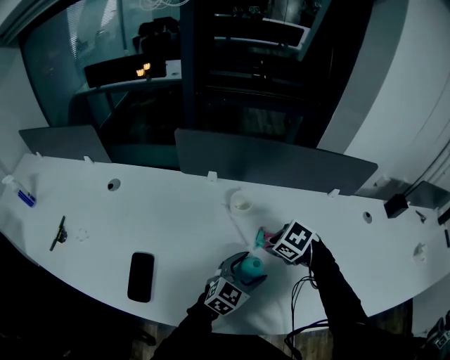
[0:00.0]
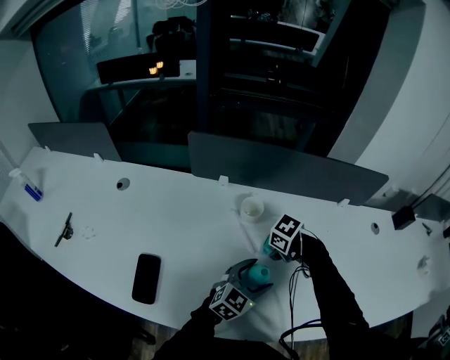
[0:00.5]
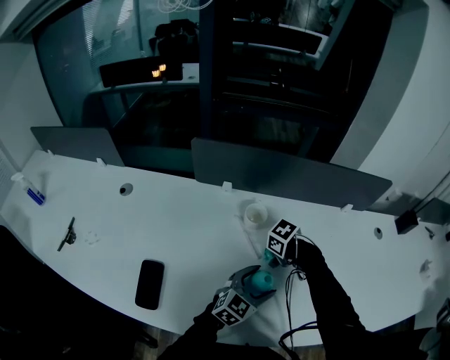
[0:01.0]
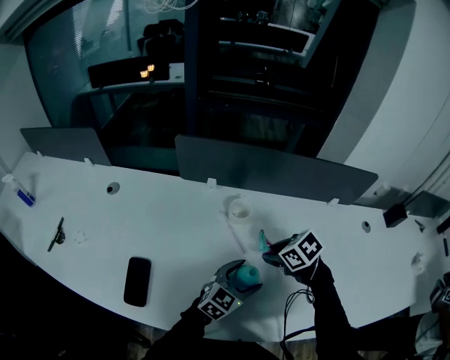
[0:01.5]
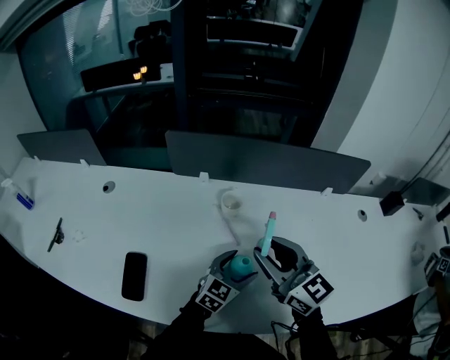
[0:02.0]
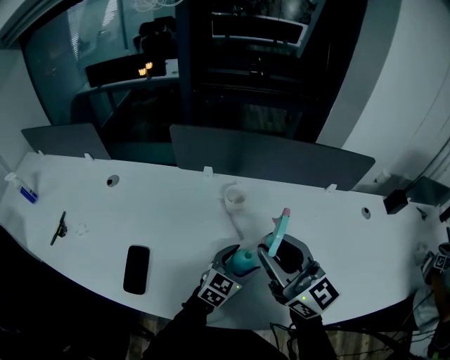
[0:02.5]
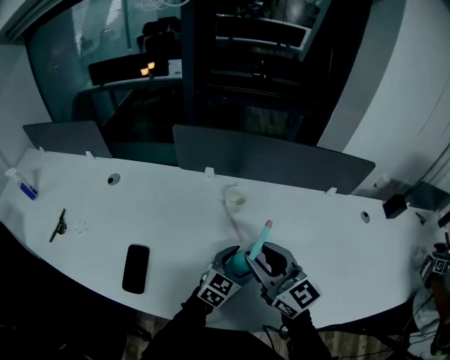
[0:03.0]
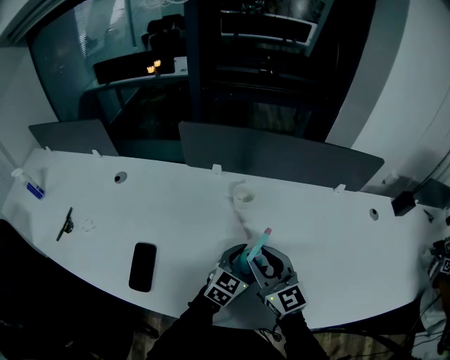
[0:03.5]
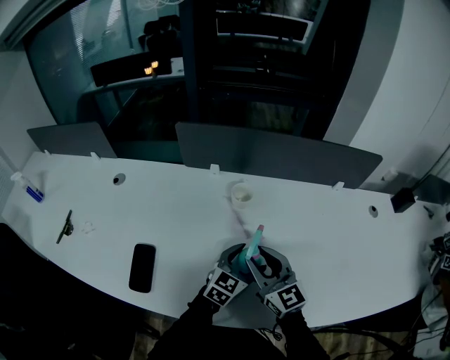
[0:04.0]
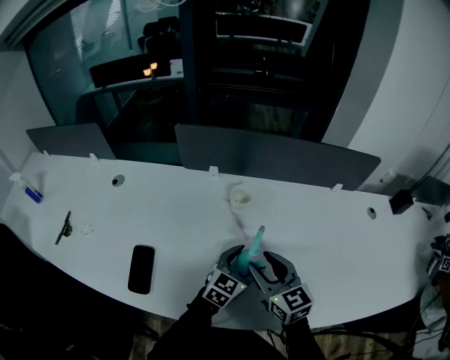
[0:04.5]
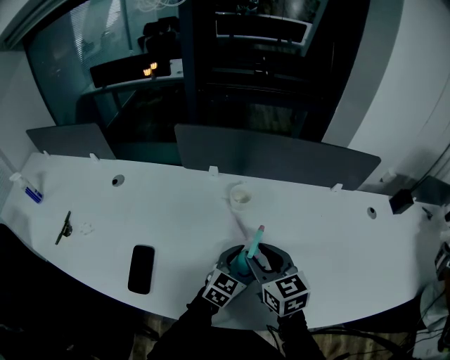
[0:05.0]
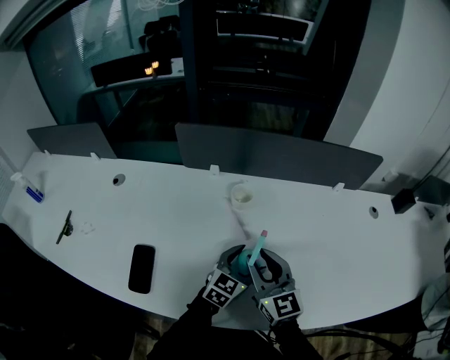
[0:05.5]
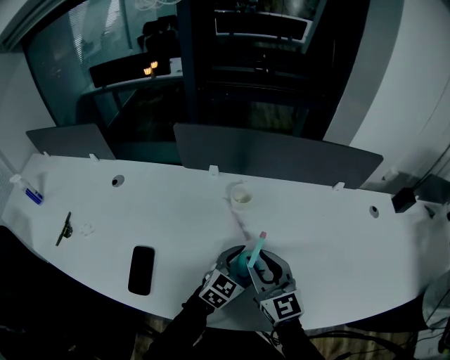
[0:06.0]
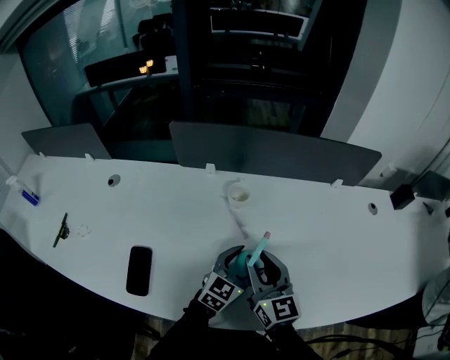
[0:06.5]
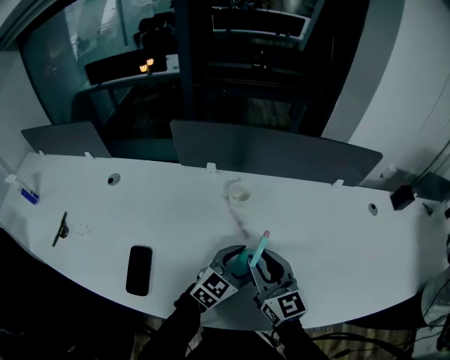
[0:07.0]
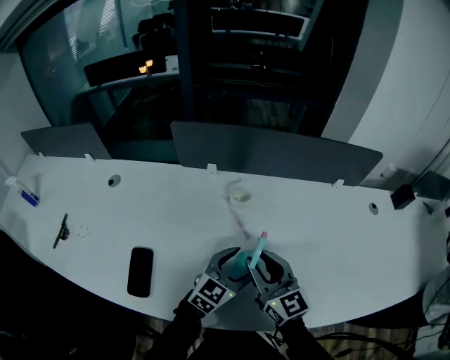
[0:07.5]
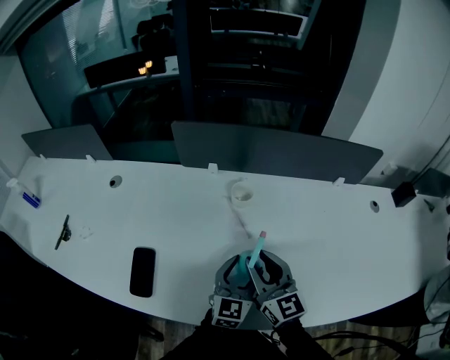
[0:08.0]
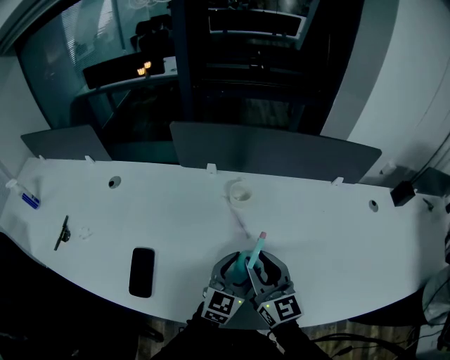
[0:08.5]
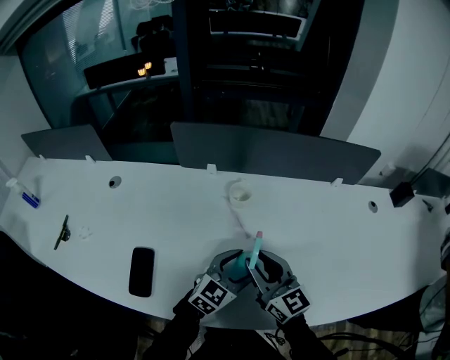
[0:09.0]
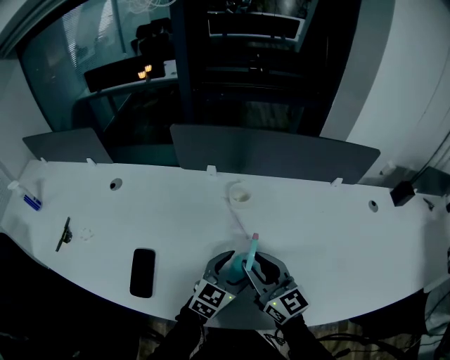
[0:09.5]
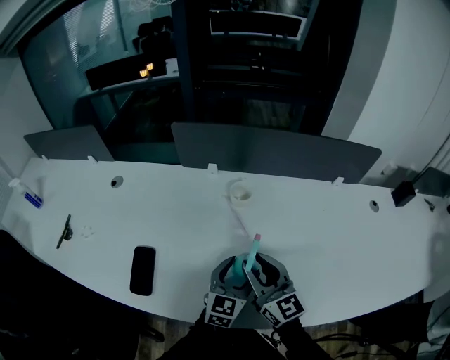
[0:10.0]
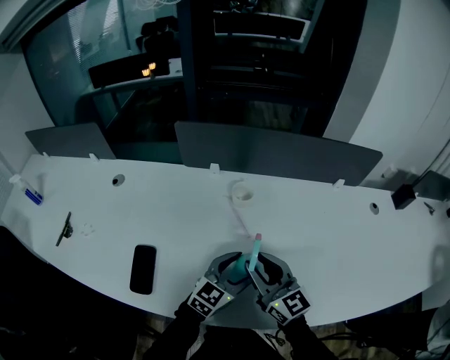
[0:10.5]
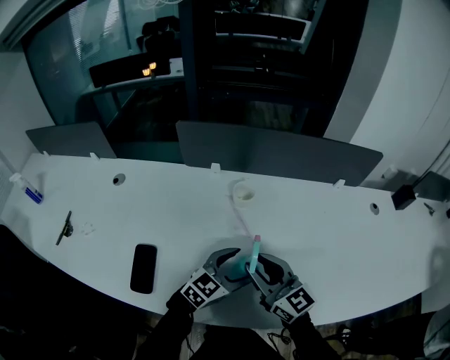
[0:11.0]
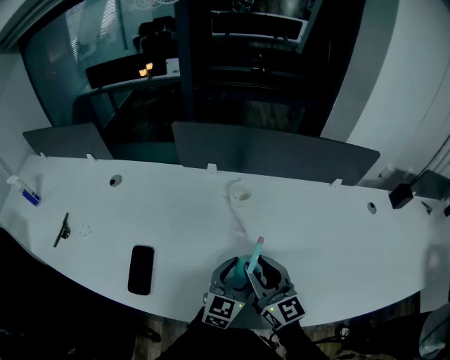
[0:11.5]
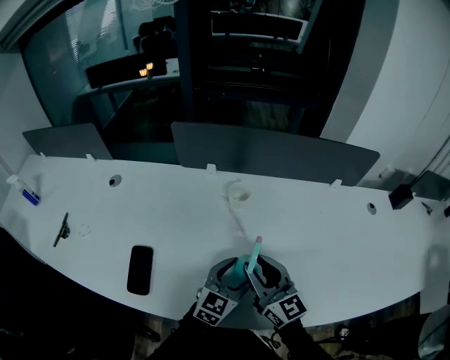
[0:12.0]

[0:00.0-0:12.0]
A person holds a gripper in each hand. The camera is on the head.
0:00.0 to 0:02.0: The right gripper travels upward by roughly 20 cm, and tips its fingers upward by some 70 degrees.
0:02.0 to 0:04.0: The right gripper travels downward by some 10 cm.
0:06.0 to 0:08.0: The left gripper turns by roughly 20 degrees.

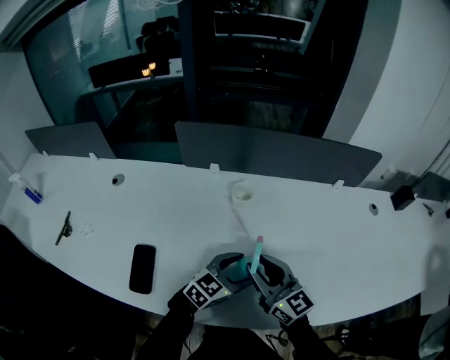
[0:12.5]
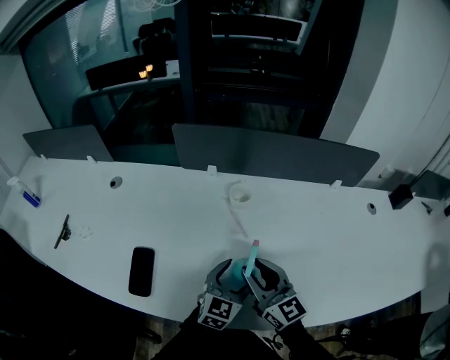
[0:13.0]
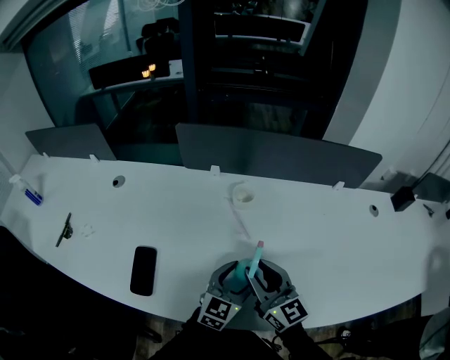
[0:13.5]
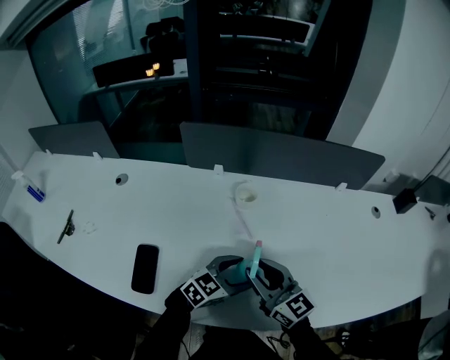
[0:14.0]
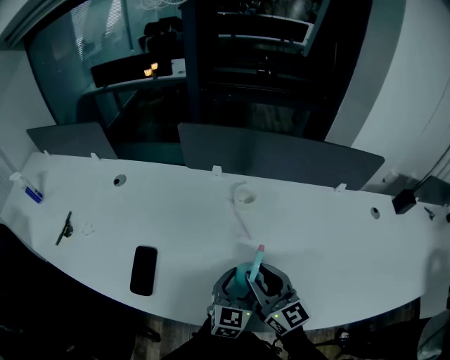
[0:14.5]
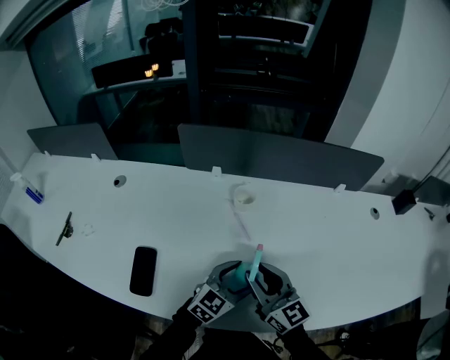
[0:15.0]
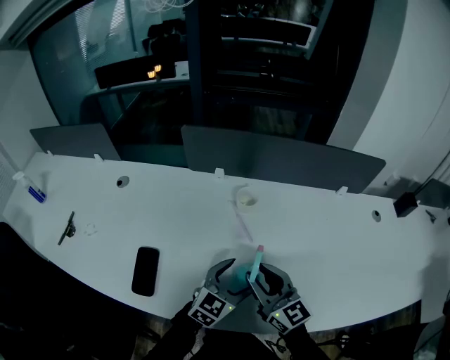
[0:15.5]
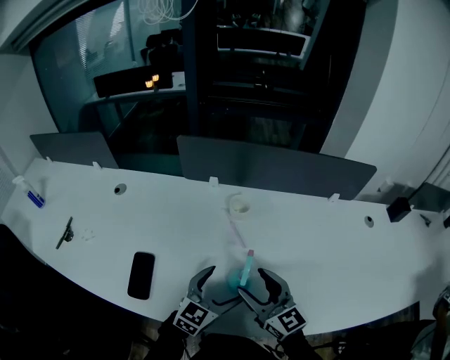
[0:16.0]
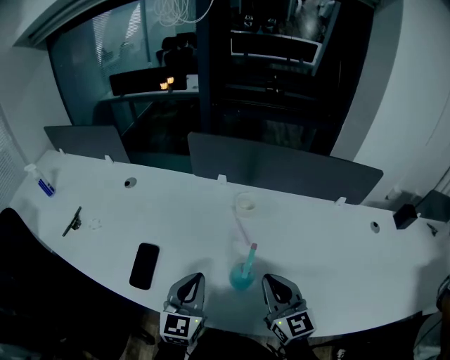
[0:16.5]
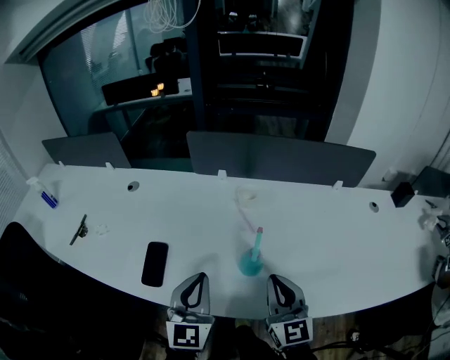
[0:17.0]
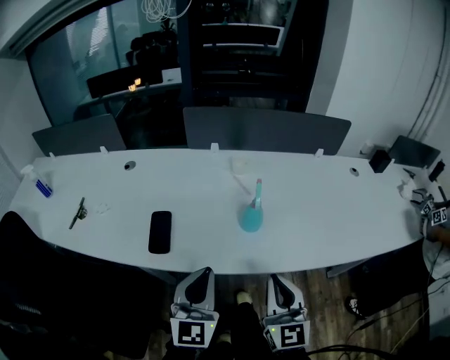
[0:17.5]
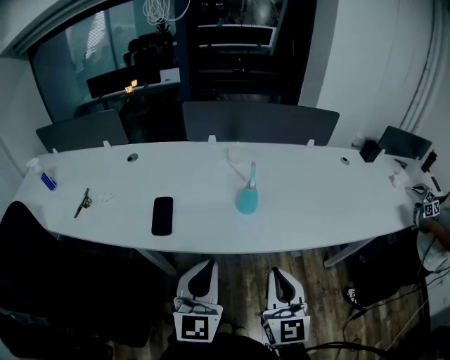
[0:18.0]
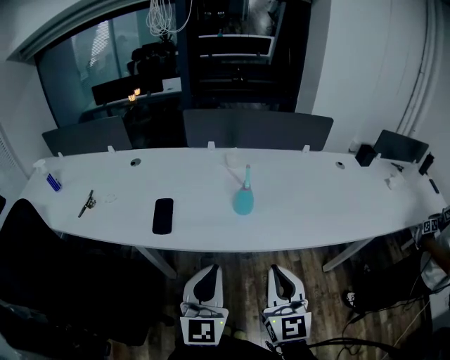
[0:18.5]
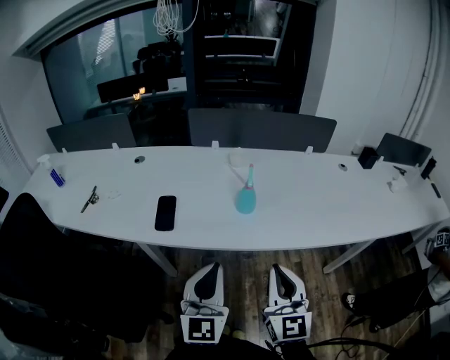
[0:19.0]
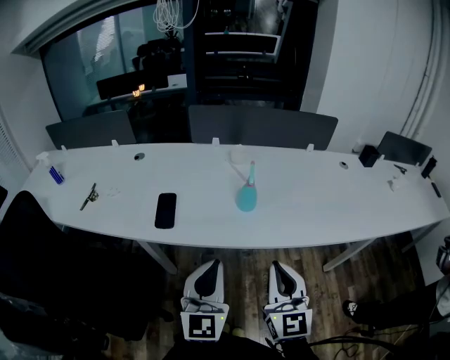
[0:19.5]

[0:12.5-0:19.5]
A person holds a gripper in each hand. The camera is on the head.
0:12.5 to 0:14.5: The left gripper changes its angle by about 30 degrees.
0:14.5 to 0:16.0: The right gripper opens.
0:16.0 to 0:17.5: The left gripper goes approximately 25 cm backward, to the left and upward, turns by some 30 degrees, and closes. Meanwhile the right gripper is displaced backward by about 20 cm, swivels about 30 degrees, and closes its fingers.
0:17.5 to 0:19.5: The grippers both shift backward by some 10 cm.

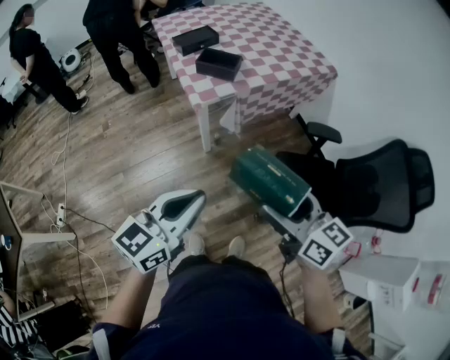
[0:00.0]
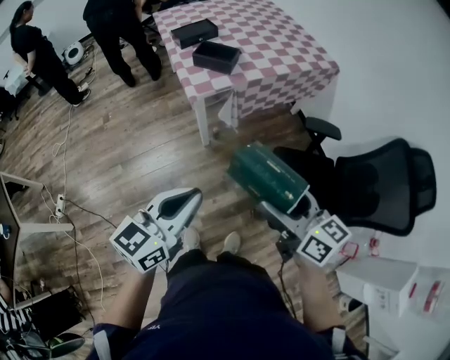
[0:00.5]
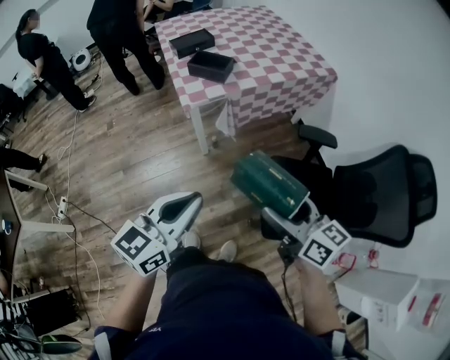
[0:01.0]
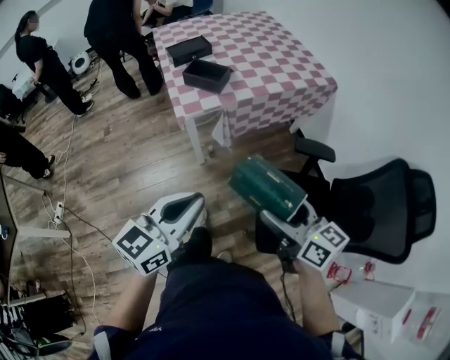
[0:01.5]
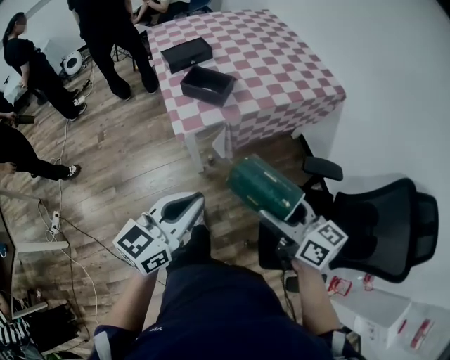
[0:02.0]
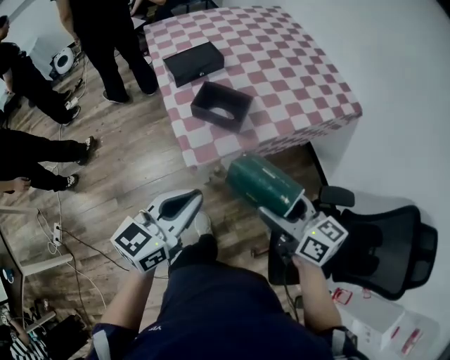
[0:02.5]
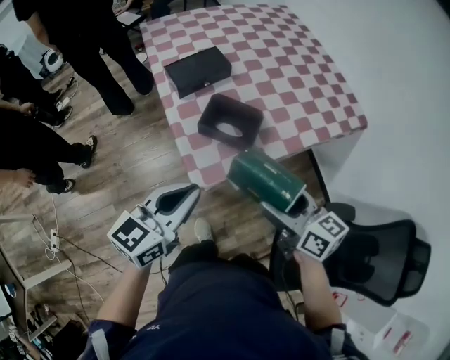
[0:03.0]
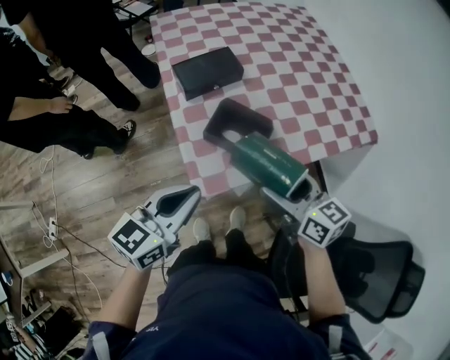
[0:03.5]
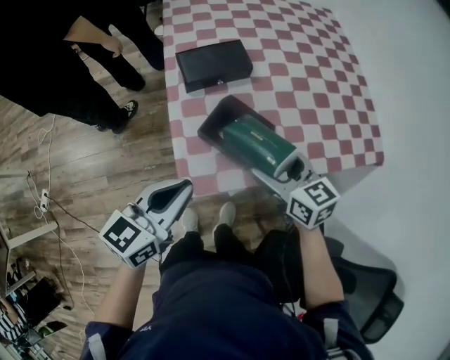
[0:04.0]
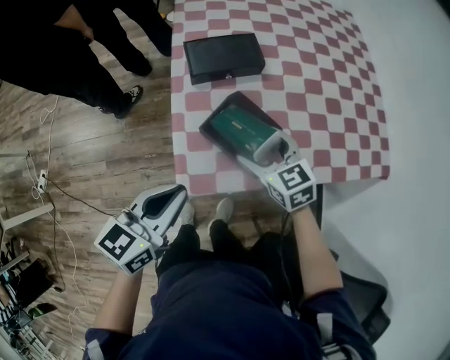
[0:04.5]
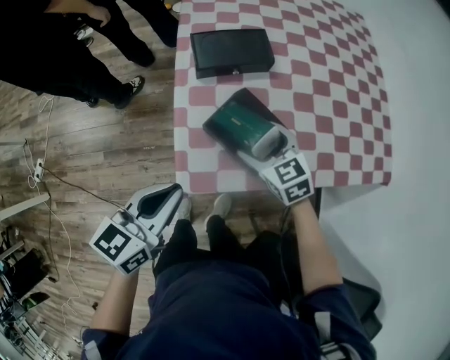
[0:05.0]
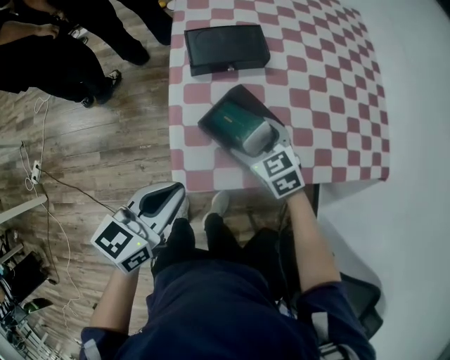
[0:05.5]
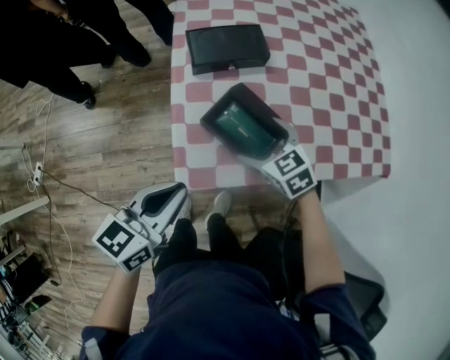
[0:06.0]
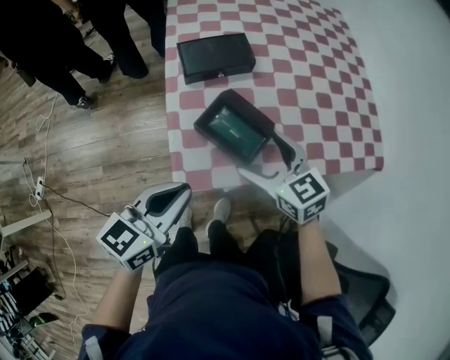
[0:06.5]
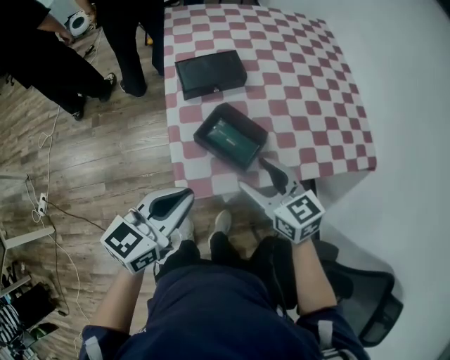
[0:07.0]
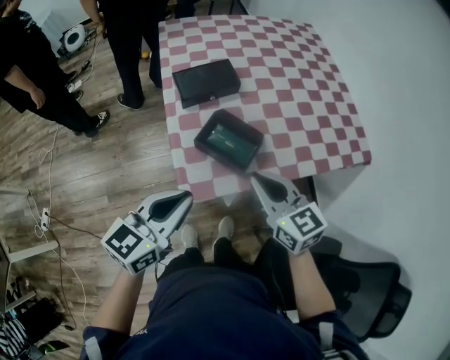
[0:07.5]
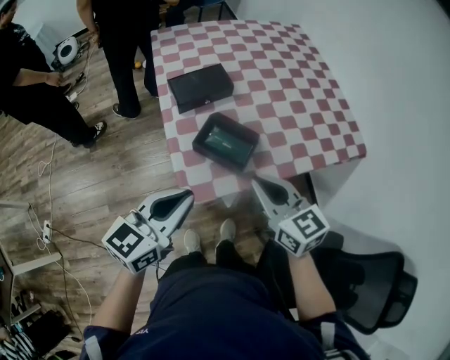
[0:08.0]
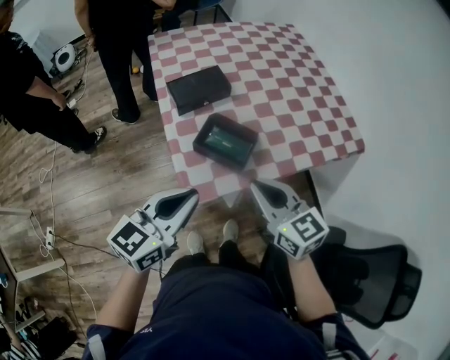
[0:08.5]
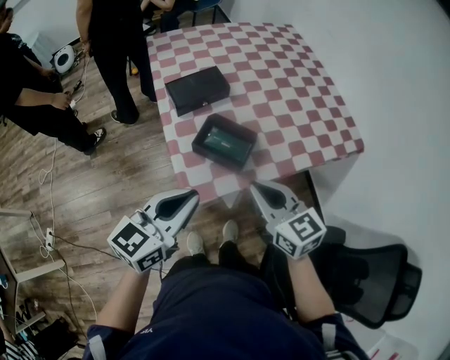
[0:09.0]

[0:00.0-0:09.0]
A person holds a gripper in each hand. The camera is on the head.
0:00.0 to 0:02.0: Both grippers move forward and to the right, roughly 20 cm.
0:02.0 to 0:04.5: The grippers both shift forward by some 40 cm. The left gripper swivels approximately 20 degrees. Meanwhile the right gripper changes its angle by roughly 50 degrees.
0:04.5 to 0:07.0: The left gripper moves about 5 cm, while the right gripper goes approximately 10 cm backward and upward.
0:07.0 to 0:09.0: The left gripper changes place by about 5 cm; the right gripper travels backward and upward by roughly 10 cm, and closes its fingers.
